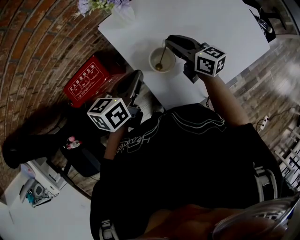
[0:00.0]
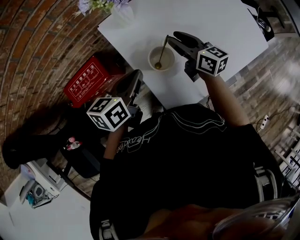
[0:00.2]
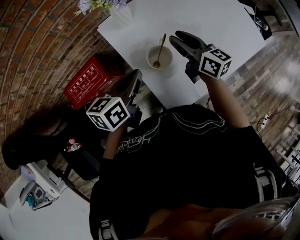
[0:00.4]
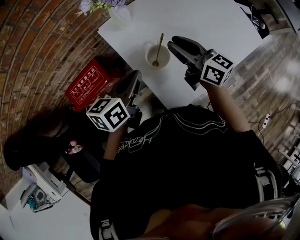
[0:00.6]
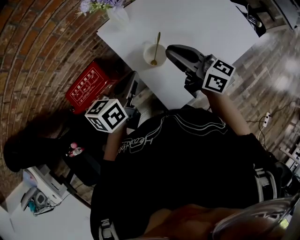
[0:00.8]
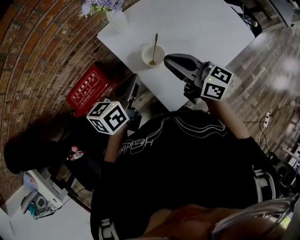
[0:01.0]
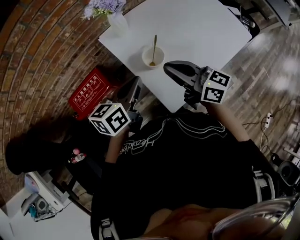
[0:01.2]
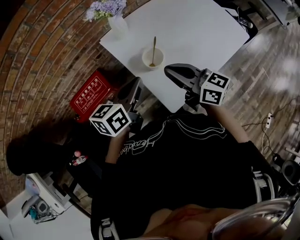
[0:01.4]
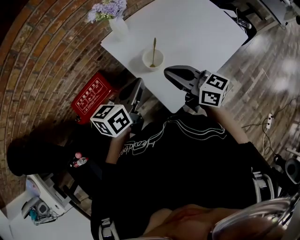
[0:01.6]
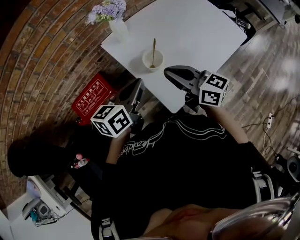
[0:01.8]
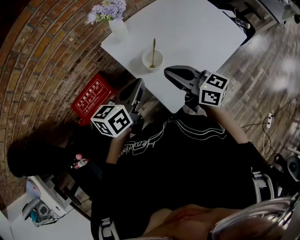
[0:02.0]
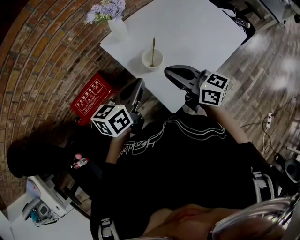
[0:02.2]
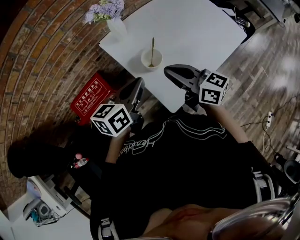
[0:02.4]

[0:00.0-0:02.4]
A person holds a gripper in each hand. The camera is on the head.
0:00.0 to 0:01.2: The left gripper goes roughly 10 cm backward and upward. Meanwhile the right gripper heads backward and upward, covering about 20 cm.
0:01.2 to 0:02.4: The grippers move only a little.

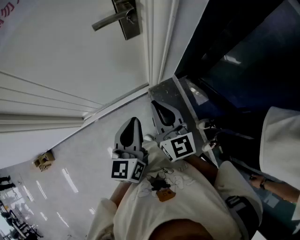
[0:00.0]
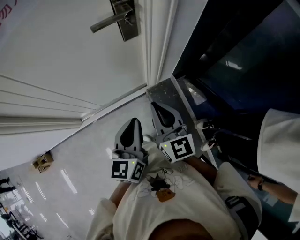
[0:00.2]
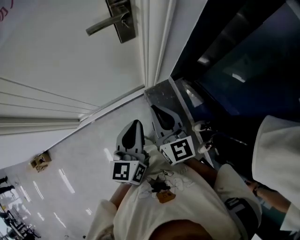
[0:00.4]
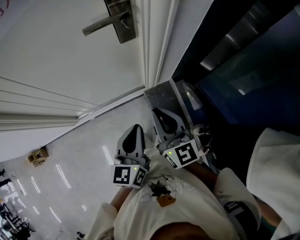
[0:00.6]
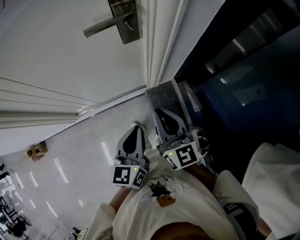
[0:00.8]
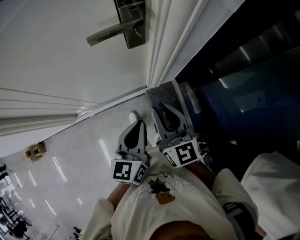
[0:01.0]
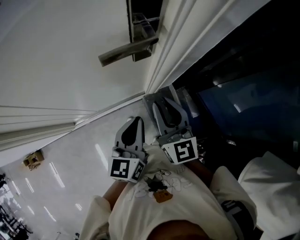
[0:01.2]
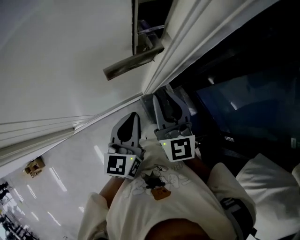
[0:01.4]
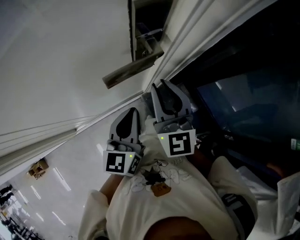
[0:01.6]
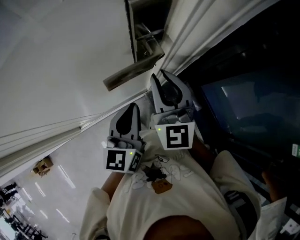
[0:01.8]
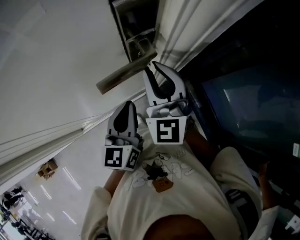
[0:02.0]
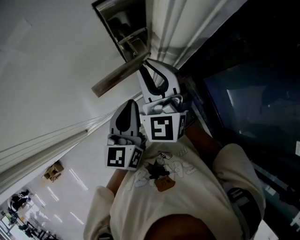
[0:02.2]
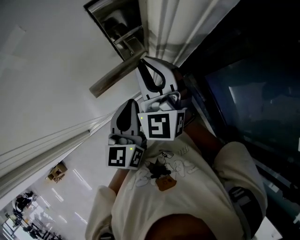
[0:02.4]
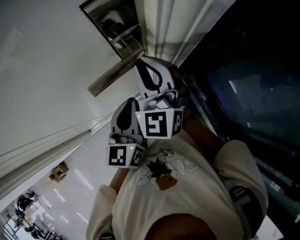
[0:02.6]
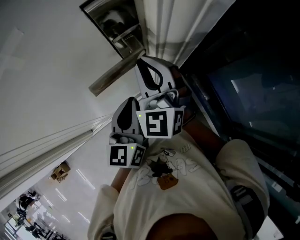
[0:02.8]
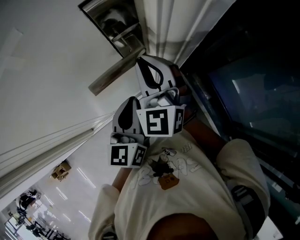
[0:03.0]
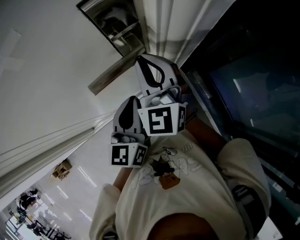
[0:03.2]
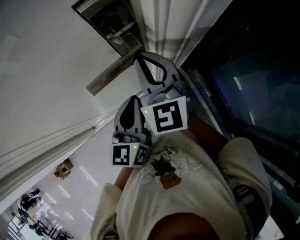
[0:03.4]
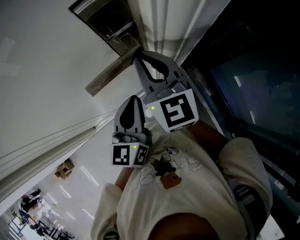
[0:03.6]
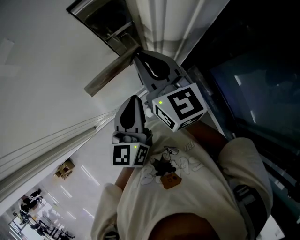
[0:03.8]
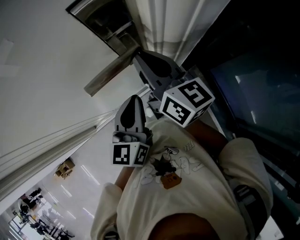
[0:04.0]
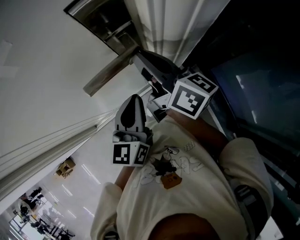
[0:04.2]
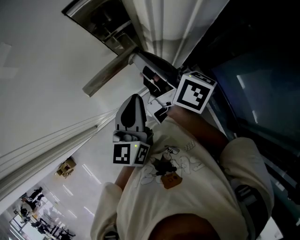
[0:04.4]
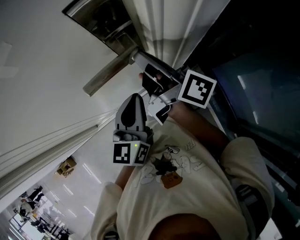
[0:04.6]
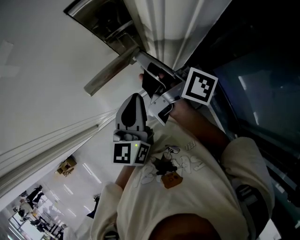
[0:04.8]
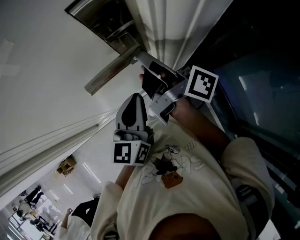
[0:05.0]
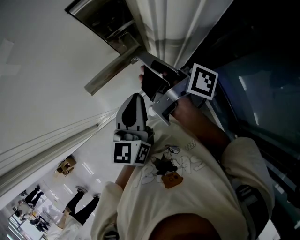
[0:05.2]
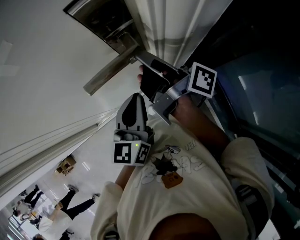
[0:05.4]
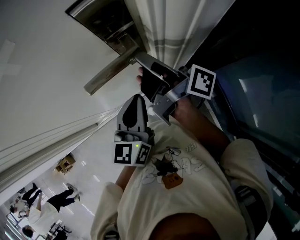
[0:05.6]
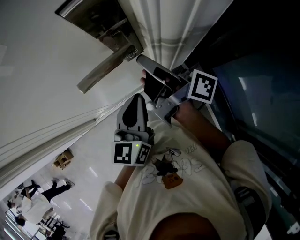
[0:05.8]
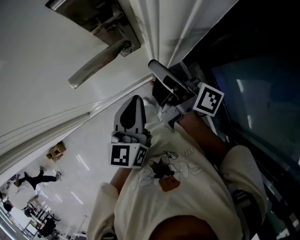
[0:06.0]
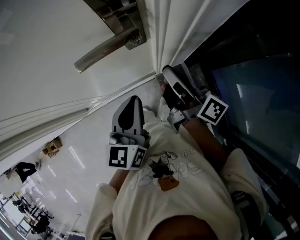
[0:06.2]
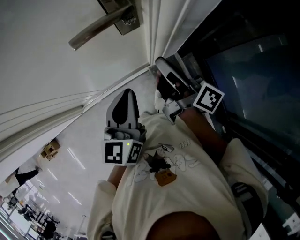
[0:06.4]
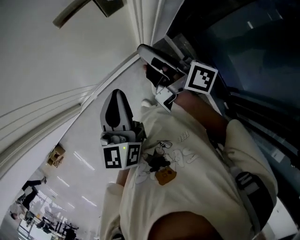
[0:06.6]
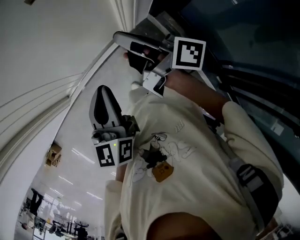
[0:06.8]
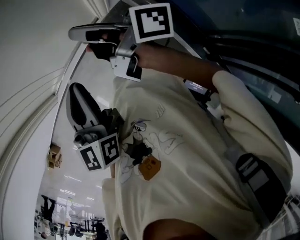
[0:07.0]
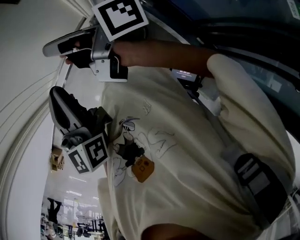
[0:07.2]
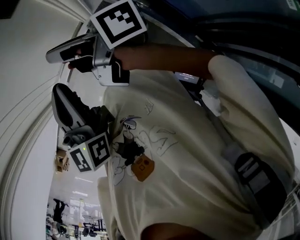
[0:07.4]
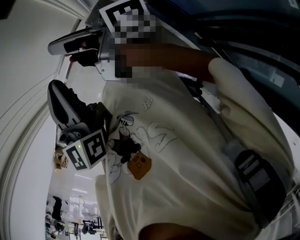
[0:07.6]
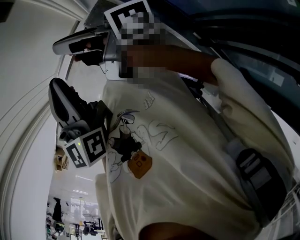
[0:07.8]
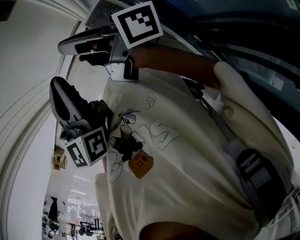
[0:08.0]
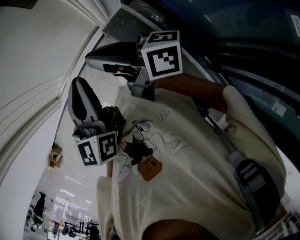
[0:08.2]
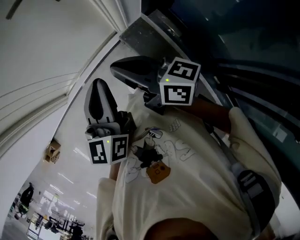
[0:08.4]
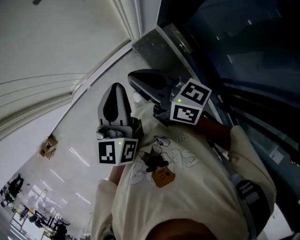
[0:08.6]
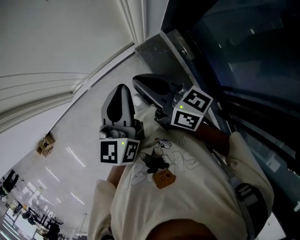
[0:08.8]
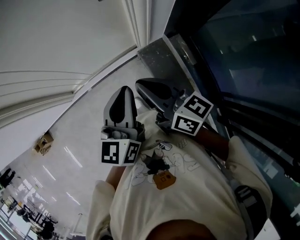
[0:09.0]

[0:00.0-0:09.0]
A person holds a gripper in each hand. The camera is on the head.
0:00.0 to 0:01.6: The two grippers go some 25 cm forward. The right gripper rotates about 20 degrees.
0:01.6 to 0:03.0: The right gripper heads forward, covering approximately 5 cm.
0:03.0 to 0:04.4: The right gripper rolls clockwise, seen from behind, by approximately 90 degrees.
0:04.4 to 0:06.0: The right gripper ends up some 5 cm from where it was, and changes its angle by about 20 degrees.
0:06.0 to 0:07.6: The two grippers go some 25 cm backward. The right gripper closes up.
0:07.6 to 0:09.0: The right gripper changes its angle by some 40 degrees.

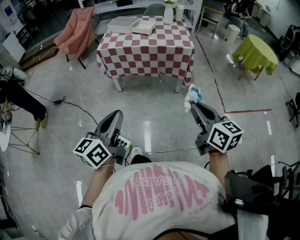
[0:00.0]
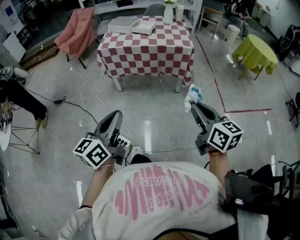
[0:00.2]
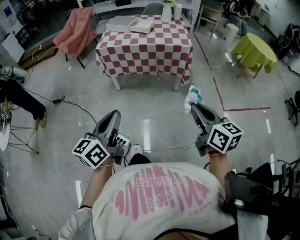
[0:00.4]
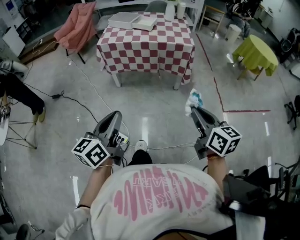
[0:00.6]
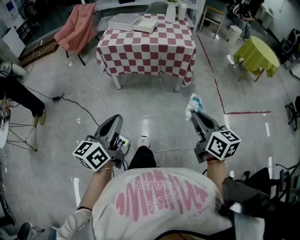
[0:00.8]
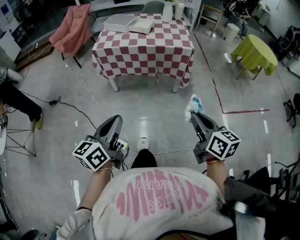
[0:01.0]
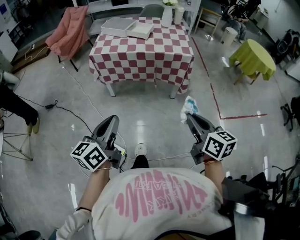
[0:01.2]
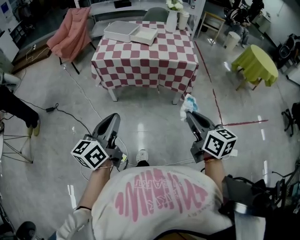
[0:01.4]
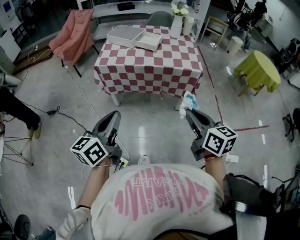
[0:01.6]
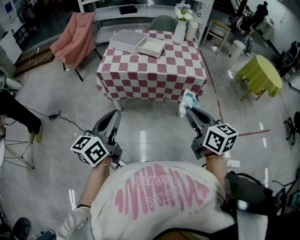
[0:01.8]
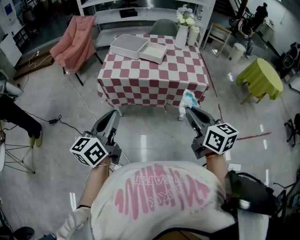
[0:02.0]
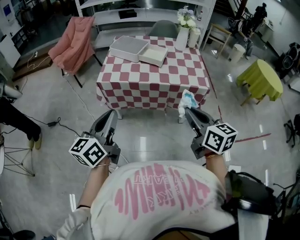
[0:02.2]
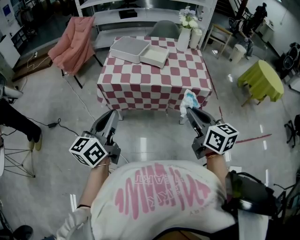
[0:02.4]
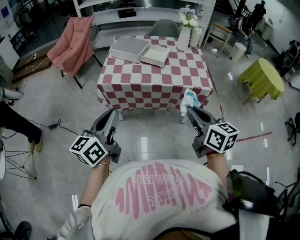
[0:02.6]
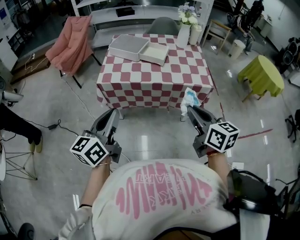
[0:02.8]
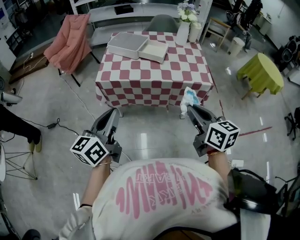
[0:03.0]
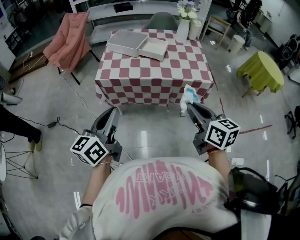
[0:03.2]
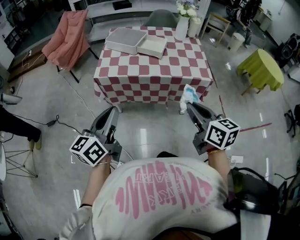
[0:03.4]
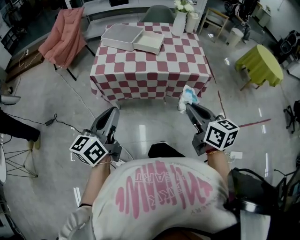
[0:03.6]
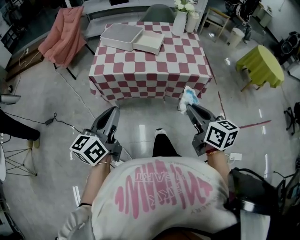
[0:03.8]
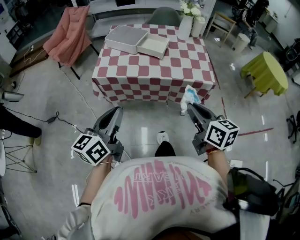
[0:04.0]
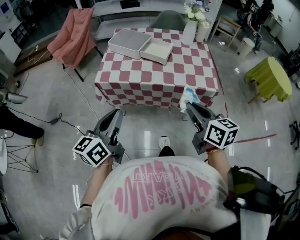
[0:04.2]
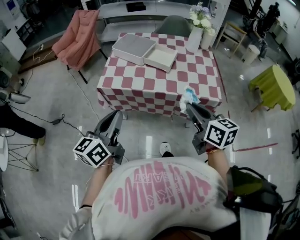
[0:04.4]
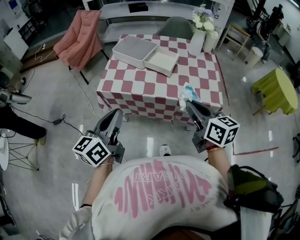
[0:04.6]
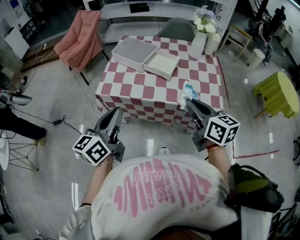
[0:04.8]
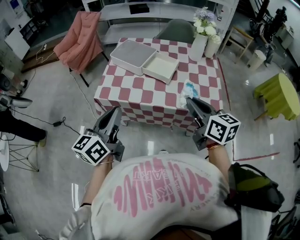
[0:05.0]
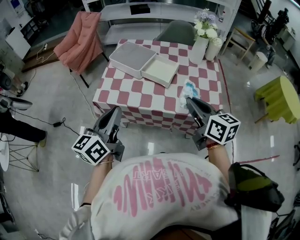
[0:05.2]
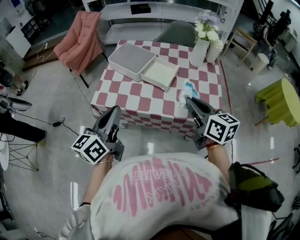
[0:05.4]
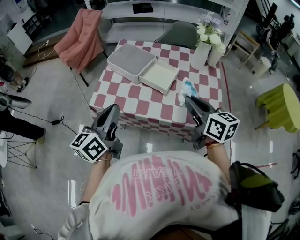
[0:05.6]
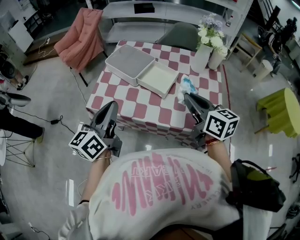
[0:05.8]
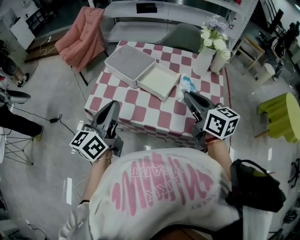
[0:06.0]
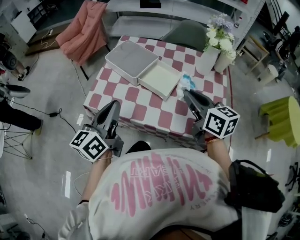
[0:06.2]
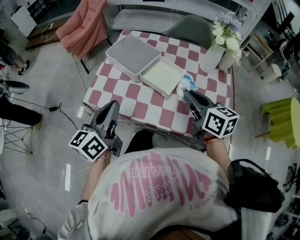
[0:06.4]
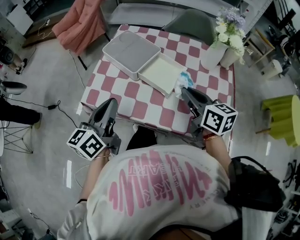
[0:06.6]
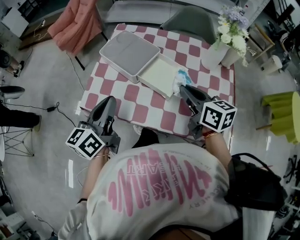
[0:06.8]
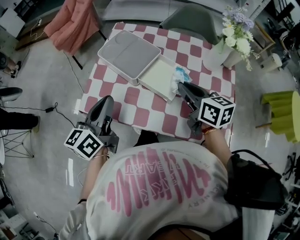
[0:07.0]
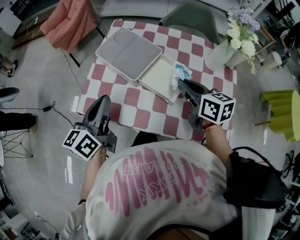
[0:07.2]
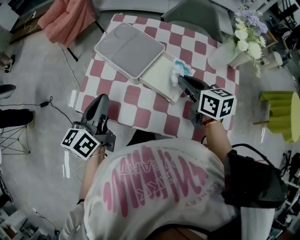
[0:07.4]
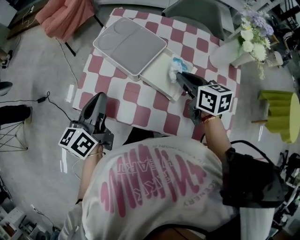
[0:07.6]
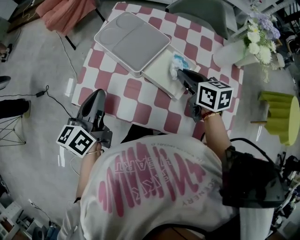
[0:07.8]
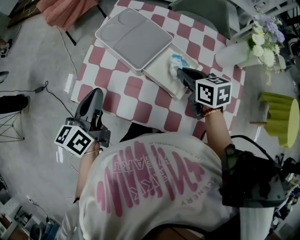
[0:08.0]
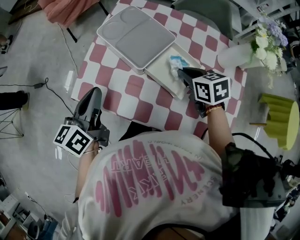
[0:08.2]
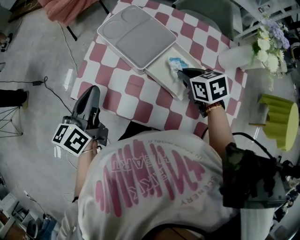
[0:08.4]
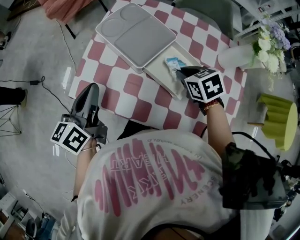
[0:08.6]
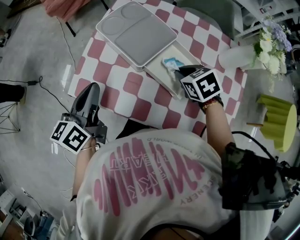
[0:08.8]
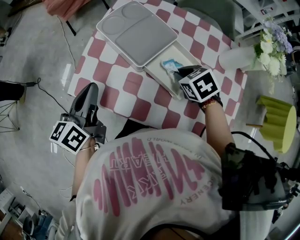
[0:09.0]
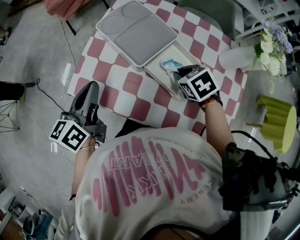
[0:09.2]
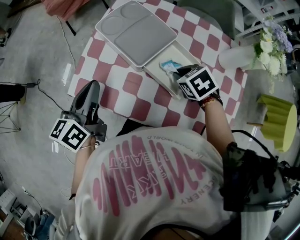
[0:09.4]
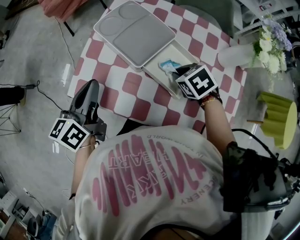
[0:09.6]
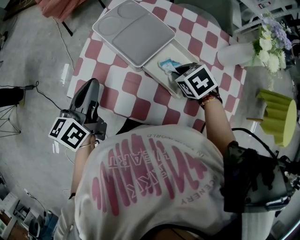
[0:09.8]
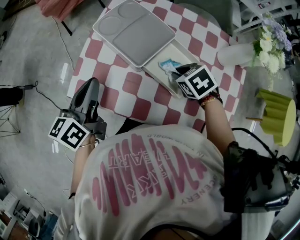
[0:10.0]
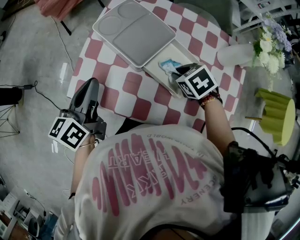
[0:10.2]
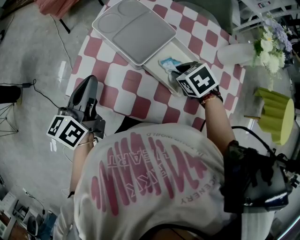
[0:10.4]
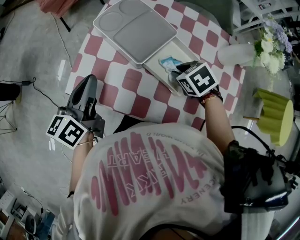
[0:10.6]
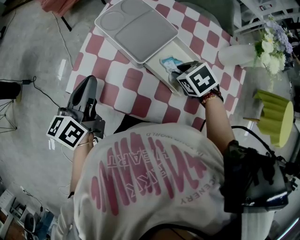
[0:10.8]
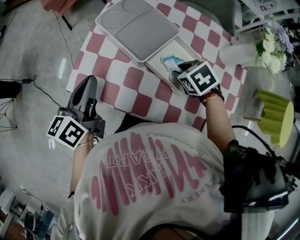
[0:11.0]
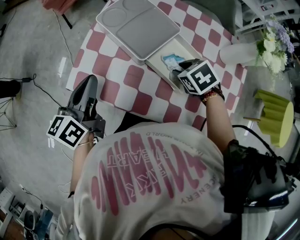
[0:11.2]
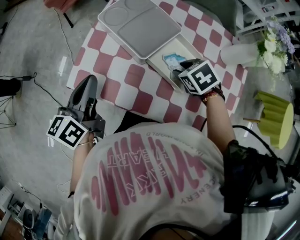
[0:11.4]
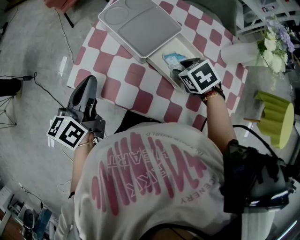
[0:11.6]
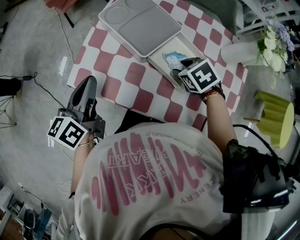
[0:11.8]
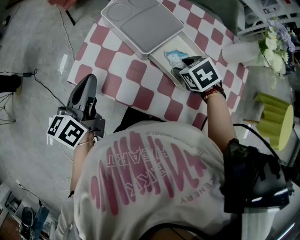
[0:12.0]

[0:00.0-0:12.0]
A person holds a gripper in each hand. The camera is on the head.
0:00.0 to 0:01.6: Both grippers travel together forward, some 20 cm.
0:01.6 to 0:03.0: The grippers both shift forward by some 15 cm.
0:03.0 to 0:04.4: The two grippers go approximately 10 cm forward.
0:04.4 to 0:06.0: The two grippers go about 25 cm forward.
0:06.0 to 0:07.6: The two grippers go approximately 20 cm forward and downward.
0:07.6 to 0:09.0: The right gripper heads downward, covering about 10 cm, and tilts its fingers roughly 30 degrees downward.
0:09.0 to 0:10.4: The grippers stay close to where they were, moving slightly.
0:10.4 to 0:12.0: The right gripper opens.
